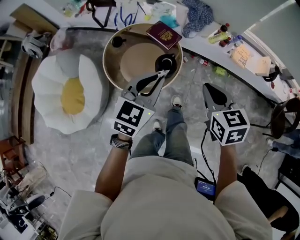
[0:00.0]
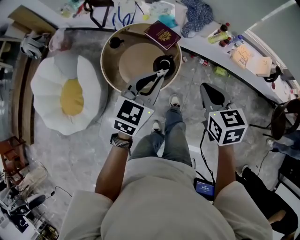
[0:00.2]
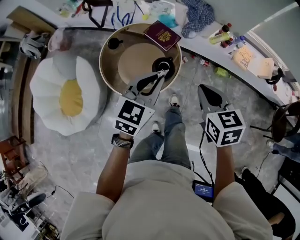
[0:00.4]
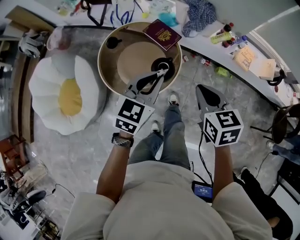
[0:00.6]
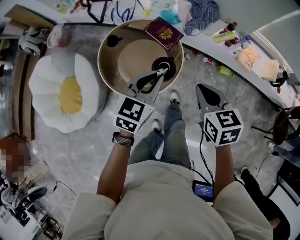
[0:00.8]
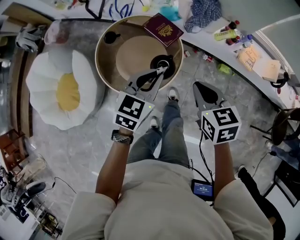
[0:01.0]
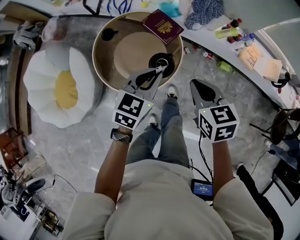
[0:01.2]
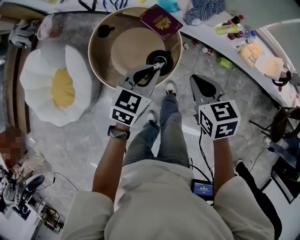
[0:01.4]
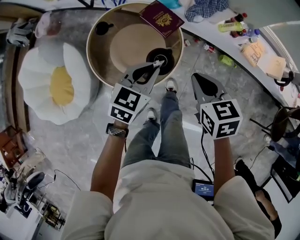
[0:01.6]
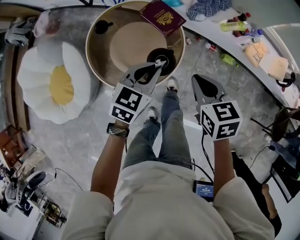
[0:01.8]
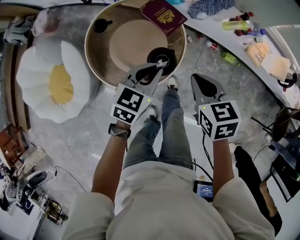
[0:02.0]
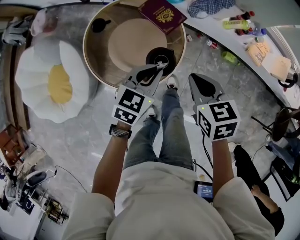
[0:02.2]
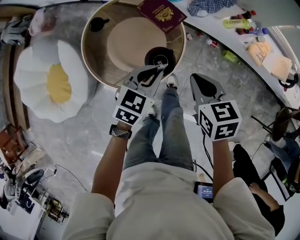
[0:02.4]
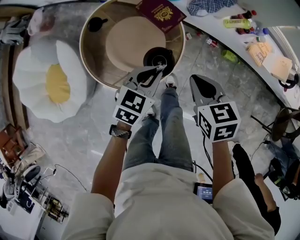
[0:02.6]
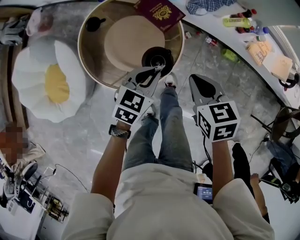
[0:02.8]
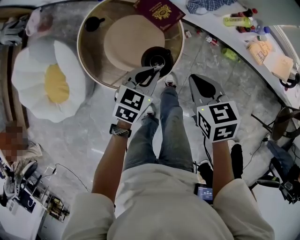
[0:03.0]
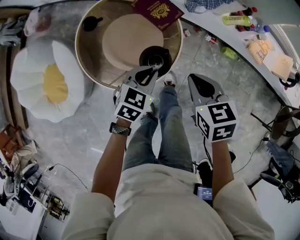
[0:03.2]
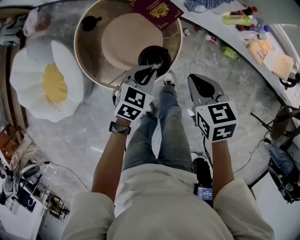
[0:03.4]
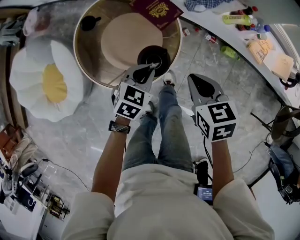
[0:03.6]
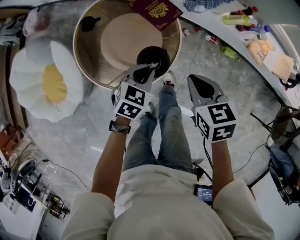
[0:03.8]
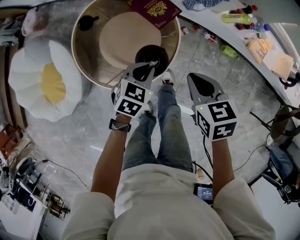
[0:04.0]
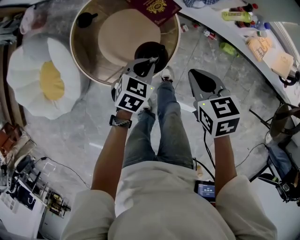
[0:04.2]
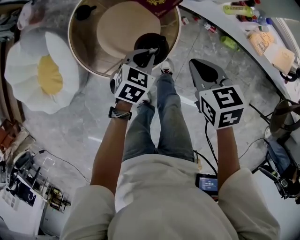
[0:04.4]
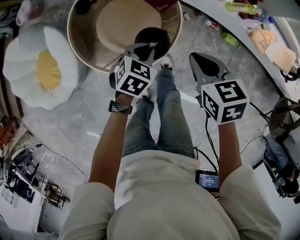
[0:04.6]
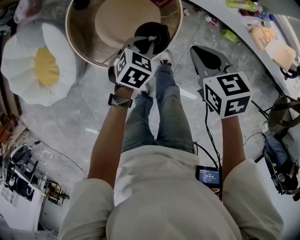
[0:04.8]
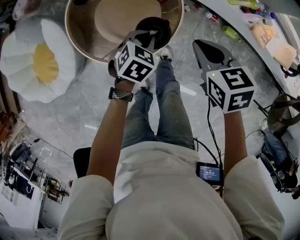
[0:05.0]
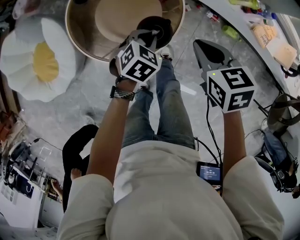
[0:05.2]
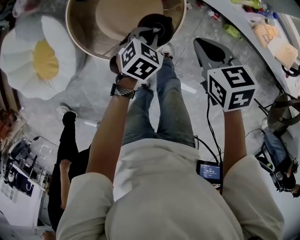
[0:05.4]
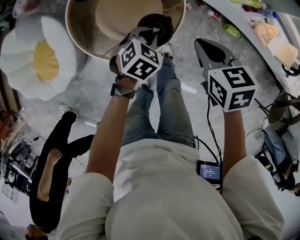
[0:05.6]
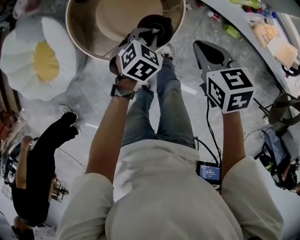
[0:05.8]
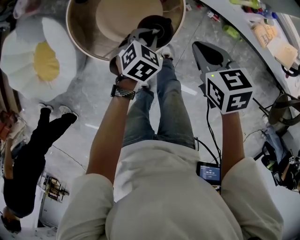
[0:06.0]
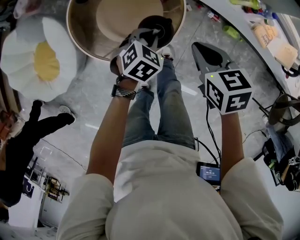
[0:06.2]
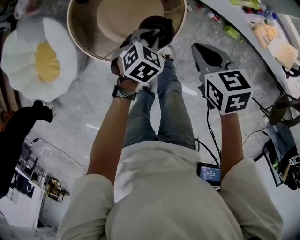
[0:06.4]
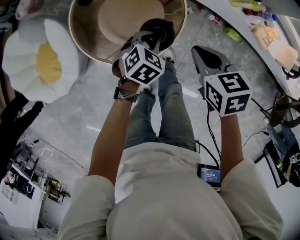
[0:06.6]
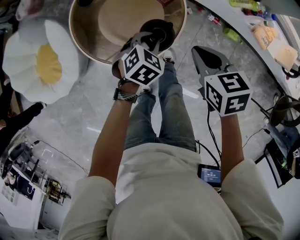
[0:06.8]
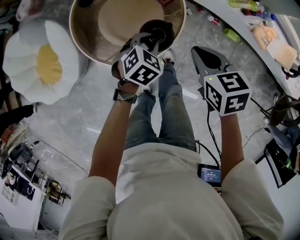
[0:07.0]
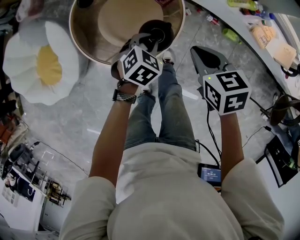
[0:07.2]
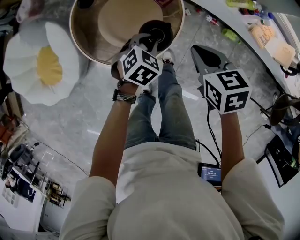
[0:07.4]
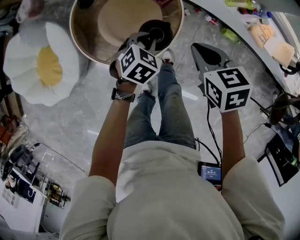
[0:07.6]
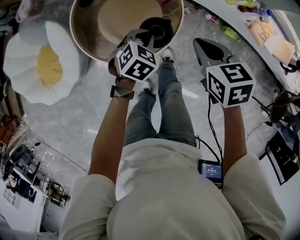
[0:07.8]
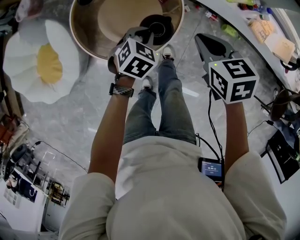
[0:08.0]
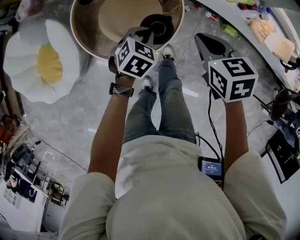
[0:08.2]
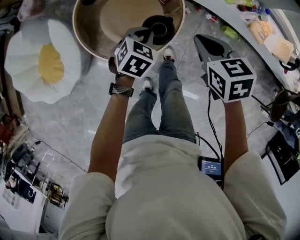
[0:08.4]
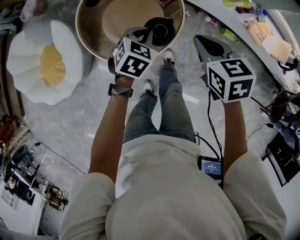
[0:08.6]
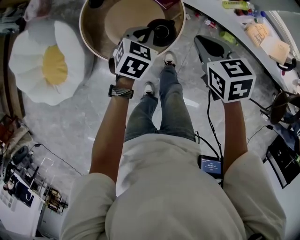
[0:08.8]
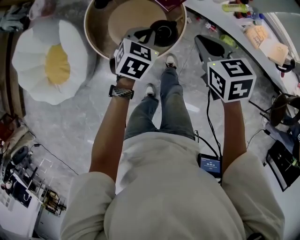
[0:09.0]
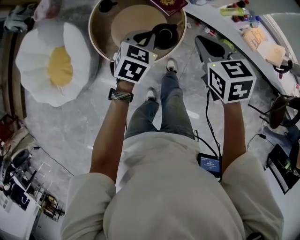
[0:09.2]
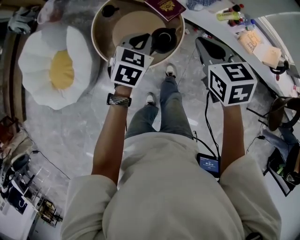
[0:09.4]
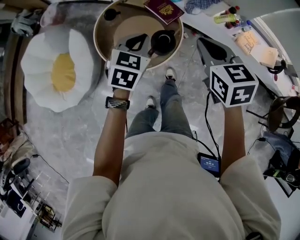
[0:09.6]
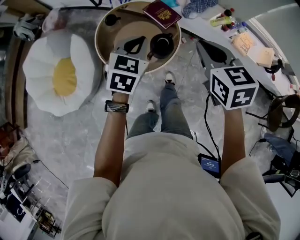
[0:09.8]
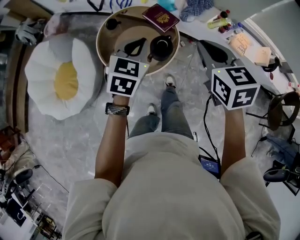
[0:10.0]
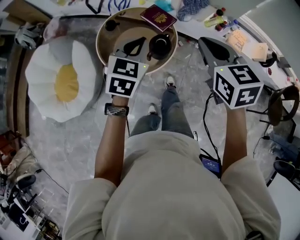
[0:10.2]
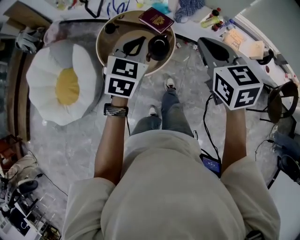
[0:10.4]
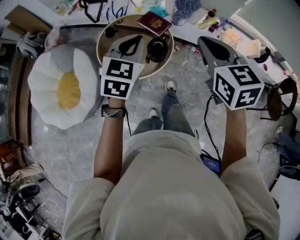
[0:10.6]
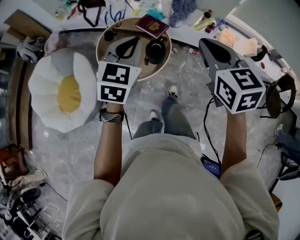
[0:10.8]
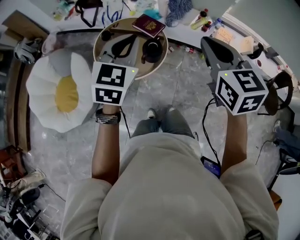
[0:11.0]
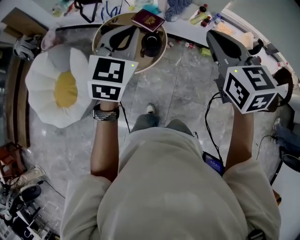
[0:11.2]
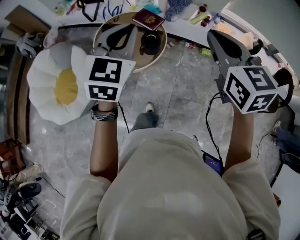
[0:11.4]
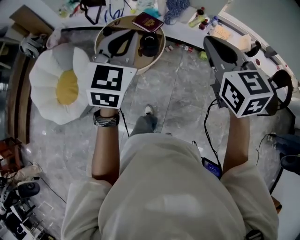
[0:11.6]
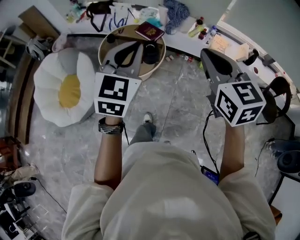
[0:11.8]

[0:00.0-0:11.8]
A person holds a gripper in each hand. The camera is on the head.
0:00.0 to 0:01.4: The right gripper moves forward and downward, roughly 20 cm. The left gripper heads downward and forward, covering roughly 20 cm.
0:01.4 to 0:03.0: The grippers both shift downward by some 10 cm.
0:03.0 to 0:04.4: The left gripper goes roughly 5 cm downward.
0:04.4 to 0:07.4: There are only small adjustments of the grippers.
0:07.4 to 0:08.8: The two grippers go roughly 10 cm upward.
0:08.8 to 0:10.4: The two grippers go about 30 cm upward and backward. The left gripper rotates approximately 20 degrees; the right gripper swivels roughly 20 degrees.
0:10.4 to 0:11.8: Both grippers move backward and upward, approximately 25 cm.

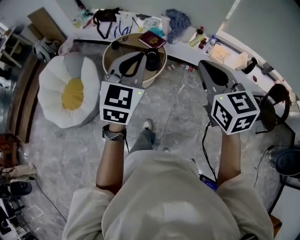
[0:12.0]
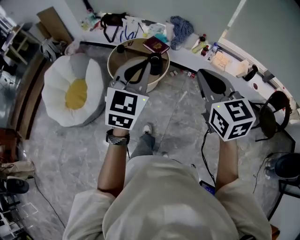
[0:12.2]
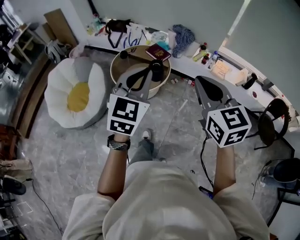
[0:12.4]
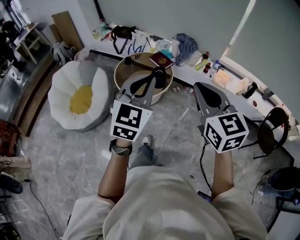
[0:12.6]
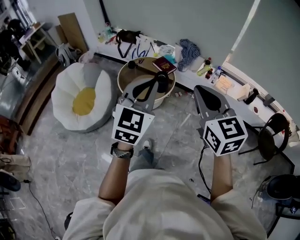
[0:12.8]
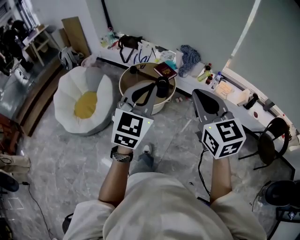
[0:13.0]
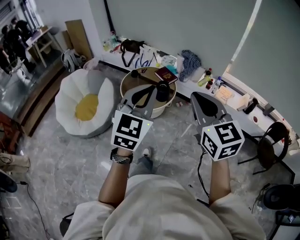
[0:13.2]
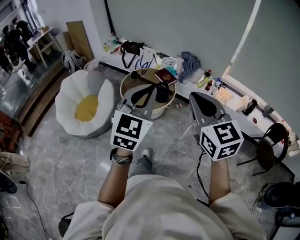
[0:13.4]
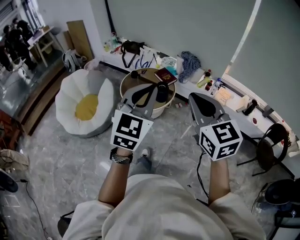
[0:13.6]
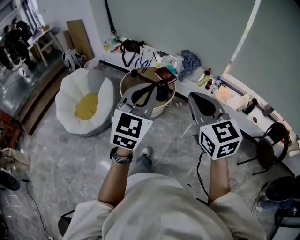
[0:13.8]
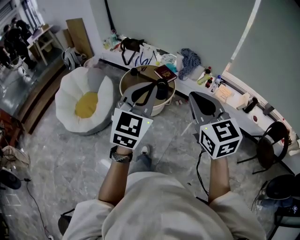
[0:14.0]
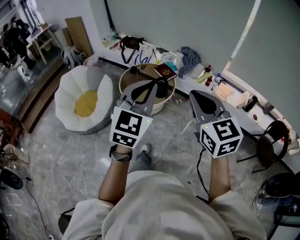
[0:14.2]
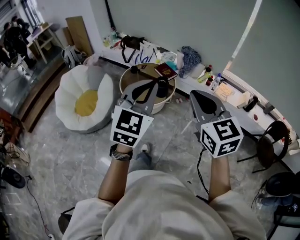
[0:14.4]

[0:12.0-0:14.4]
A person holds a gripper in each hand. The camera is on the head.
0:12.0 to 0:13.2: Both grippers move backward and upward, about 15 cm.
0:13.2 to 0:14.4: The grippers move only a little.

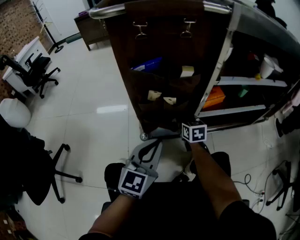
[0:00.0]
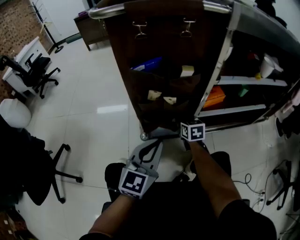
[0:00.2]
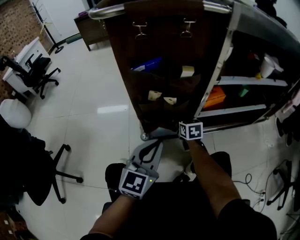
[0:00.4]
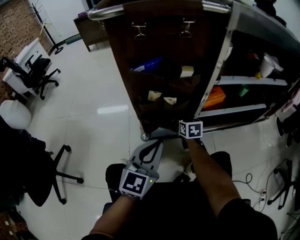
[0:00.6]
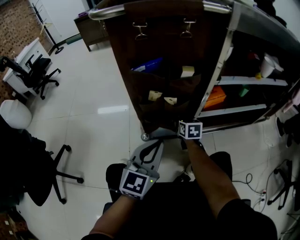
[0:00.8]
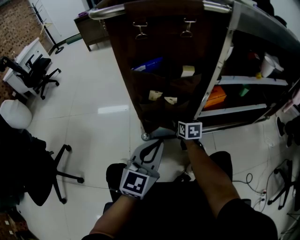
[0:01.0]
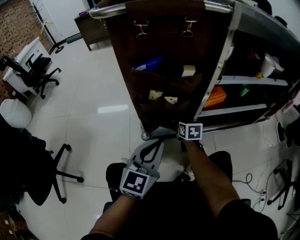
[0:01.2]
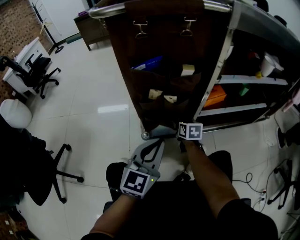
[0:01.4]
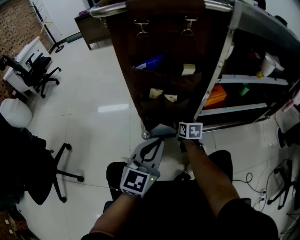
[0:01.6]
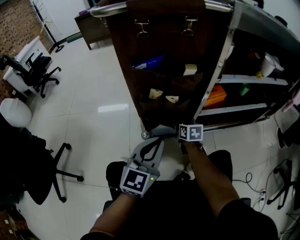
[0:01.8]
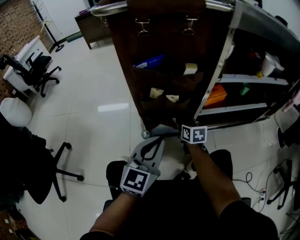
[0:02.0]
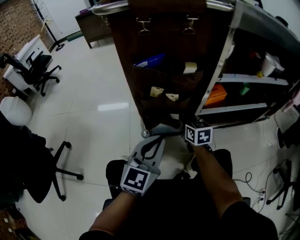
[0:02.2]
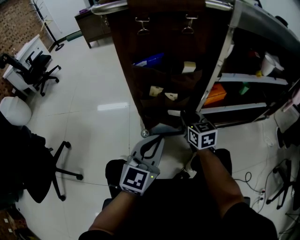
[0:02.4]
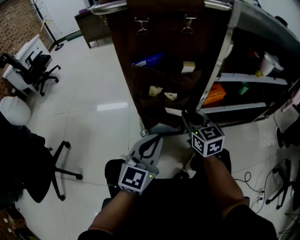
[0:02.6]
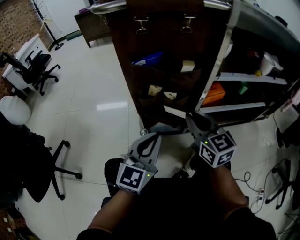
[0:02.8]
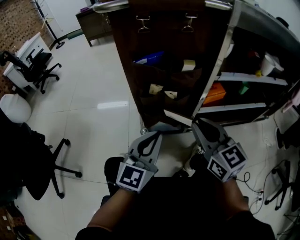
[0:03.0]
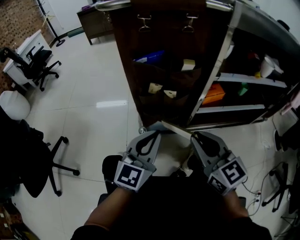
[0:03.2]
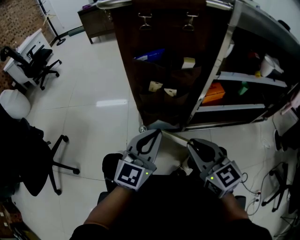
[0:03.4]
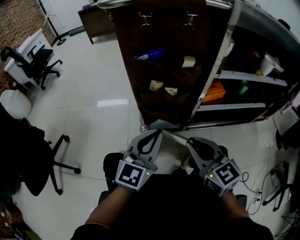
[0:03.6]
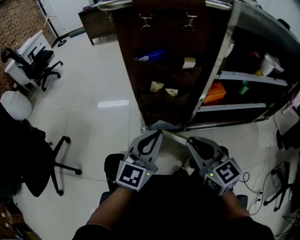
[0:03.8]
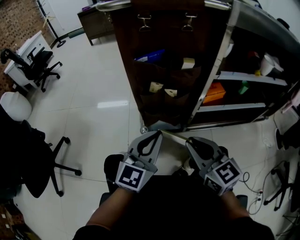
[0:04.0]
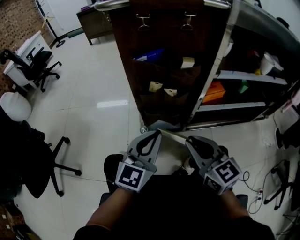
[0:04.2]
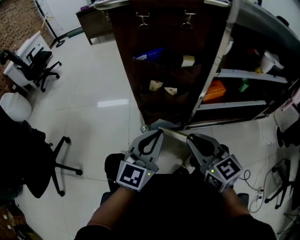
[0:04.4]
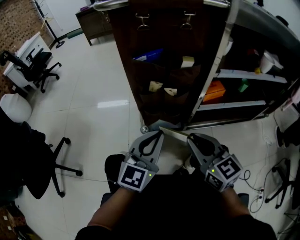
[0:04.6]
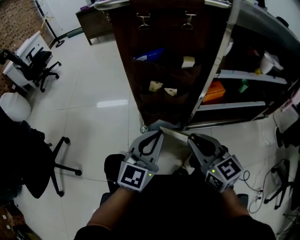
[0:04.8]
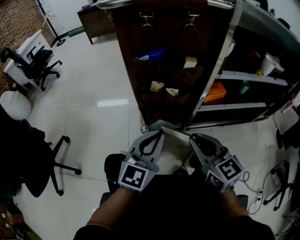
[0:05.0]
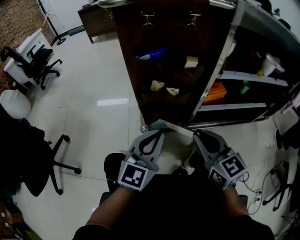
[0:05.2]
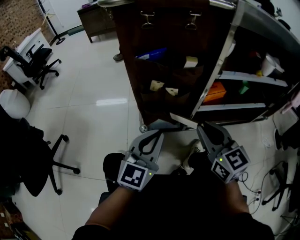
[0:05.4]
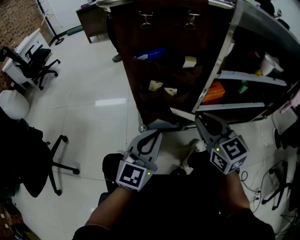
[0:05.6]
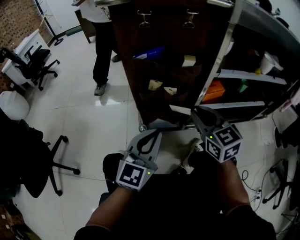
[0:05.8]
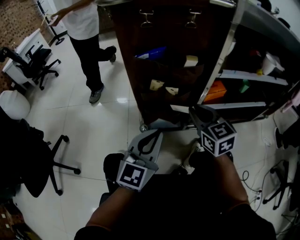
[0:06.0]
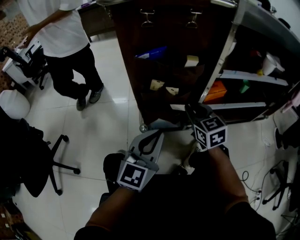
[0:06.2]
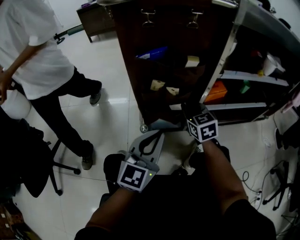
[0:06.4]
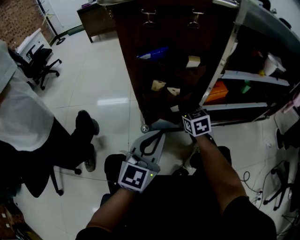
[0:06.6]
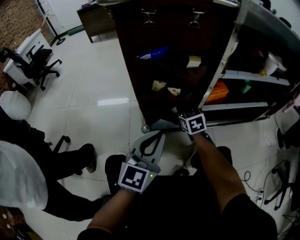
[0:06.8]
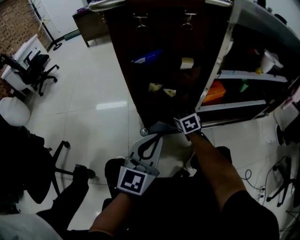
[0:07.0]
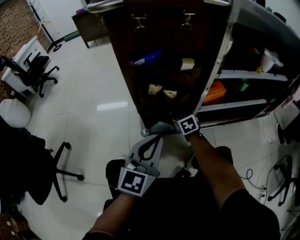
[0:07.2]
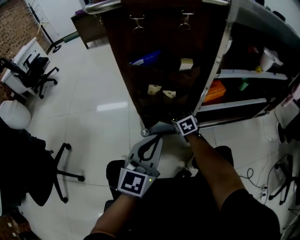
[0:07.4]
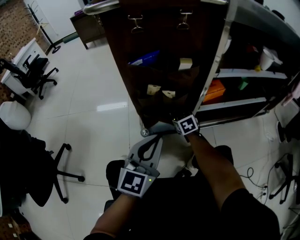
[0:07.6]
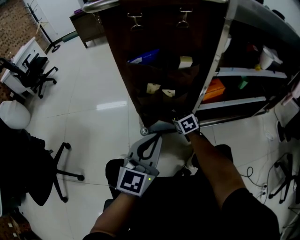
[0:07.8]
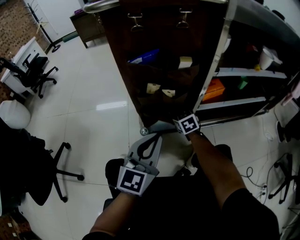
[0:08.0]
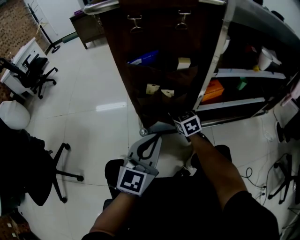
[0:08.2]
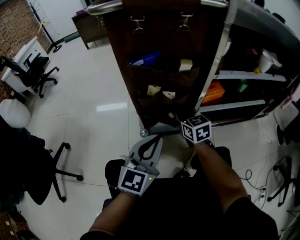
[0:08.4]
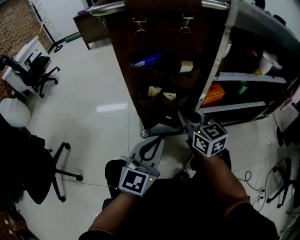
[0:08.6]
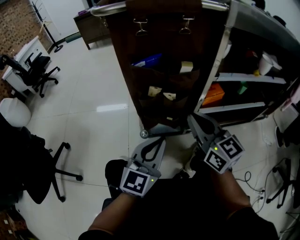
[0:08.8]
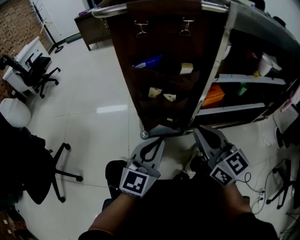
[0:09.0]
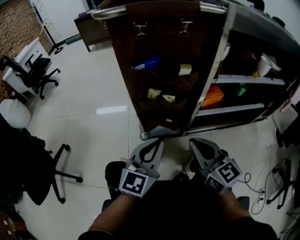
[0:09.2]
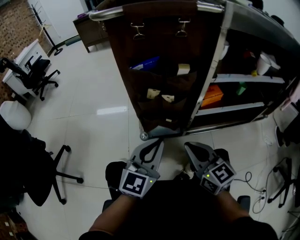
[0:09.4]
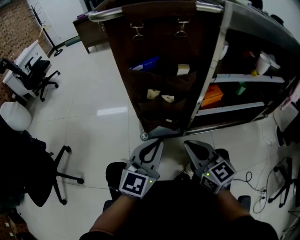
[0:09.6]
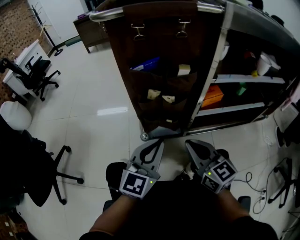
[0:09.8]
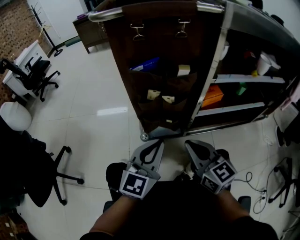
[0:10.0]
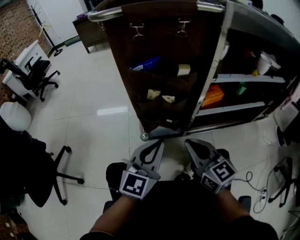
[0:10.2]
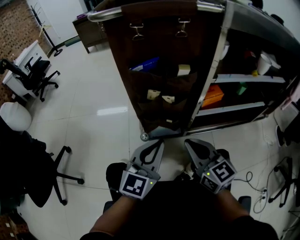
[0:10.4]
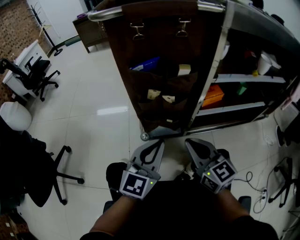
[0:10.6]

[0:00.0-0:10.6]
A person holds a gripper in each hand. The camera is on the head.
0:00.0 to 0:01.6: The right gripper shifts approximately 5 cm downward.
0:01.6 to 0:03.0: The right gripper travels upward and backward by roughly 30 cm, and swivels about 40 degrees.
0:03.0 to 0:04.6: The right gripper shifts by roughly 5 cm.
0:04.6 to 0:06.0: The right gripper goes roughly 10 cm forward.
0:06.0 to 0:07.6: The right gripper travels downward and forward by approximately 25 cm, and rotates about 20 degrees.
0:07.6 to 0:09.0: The right gripper shifts approximately 35 cm upward and backward, and points its fingers some 40 degrees further upward.
0:09.0 to 0:10.6: The right gripper is displaced downward by roughly 5 cm.
